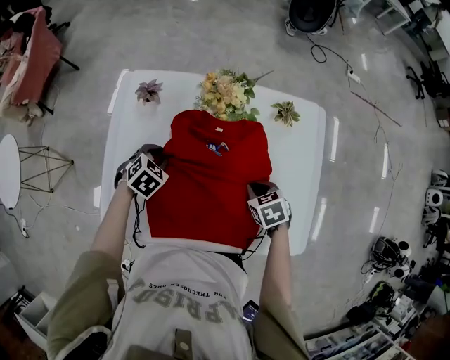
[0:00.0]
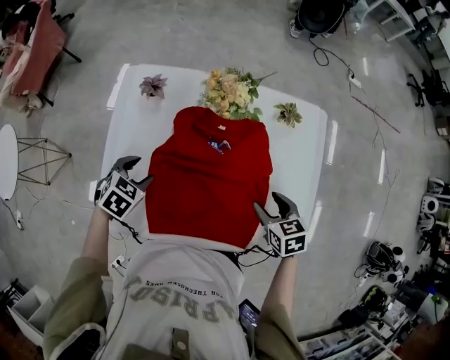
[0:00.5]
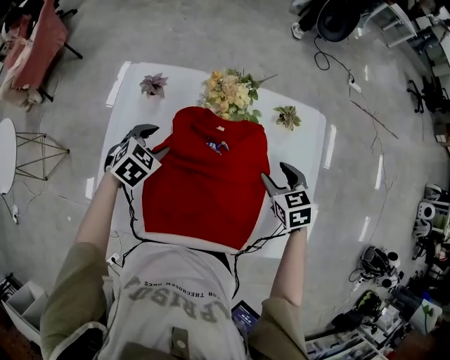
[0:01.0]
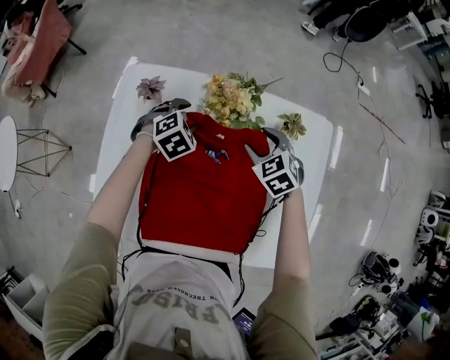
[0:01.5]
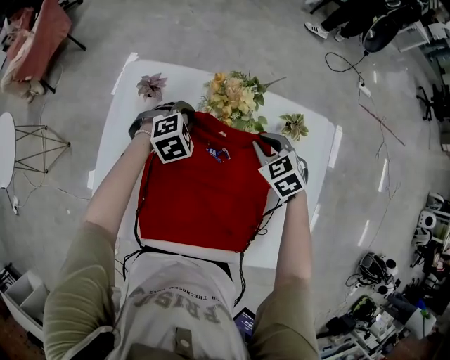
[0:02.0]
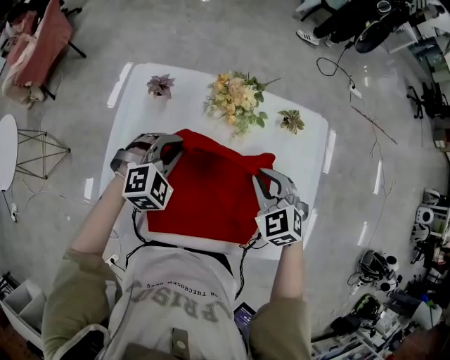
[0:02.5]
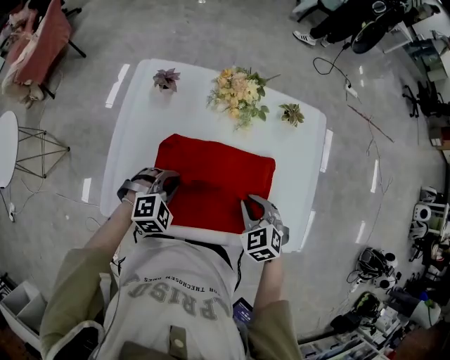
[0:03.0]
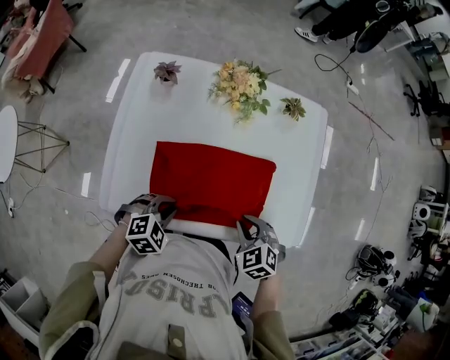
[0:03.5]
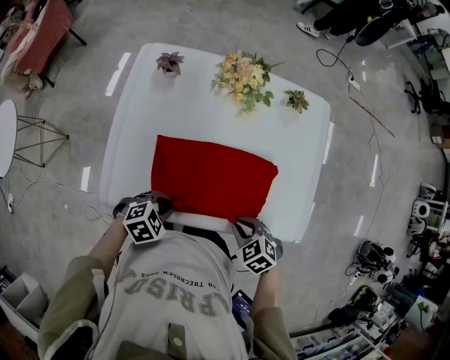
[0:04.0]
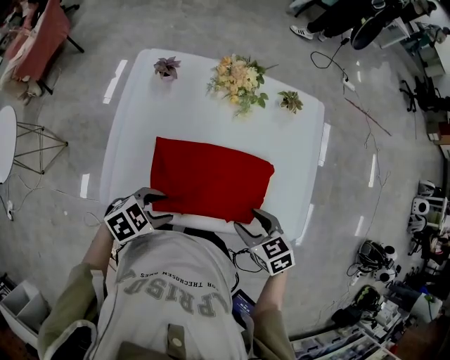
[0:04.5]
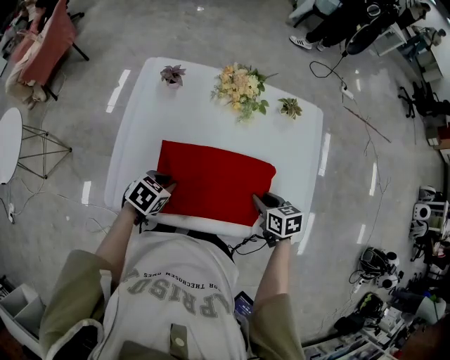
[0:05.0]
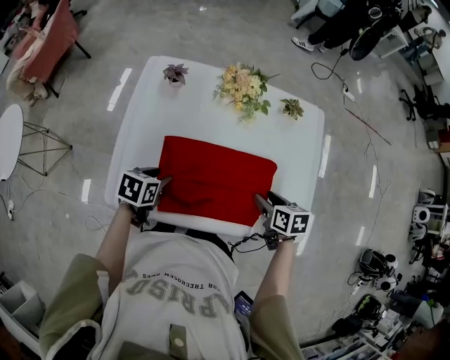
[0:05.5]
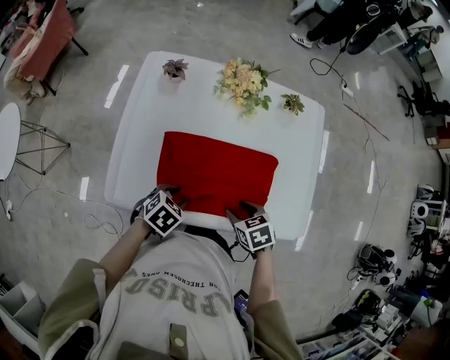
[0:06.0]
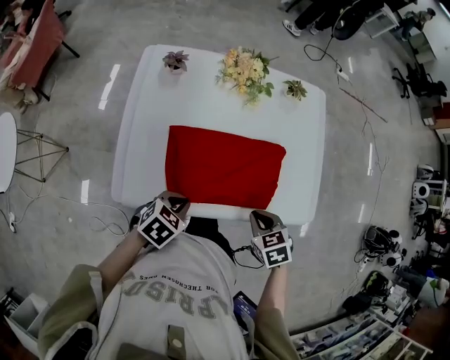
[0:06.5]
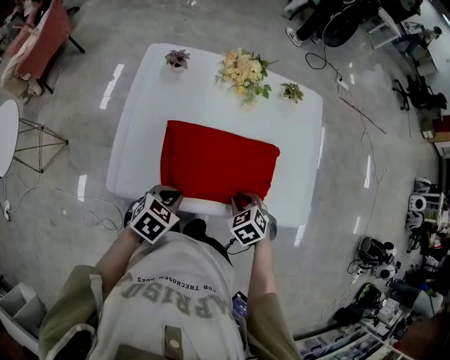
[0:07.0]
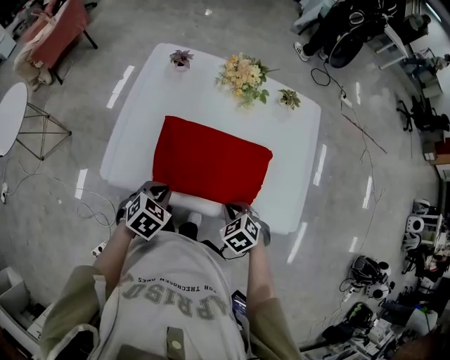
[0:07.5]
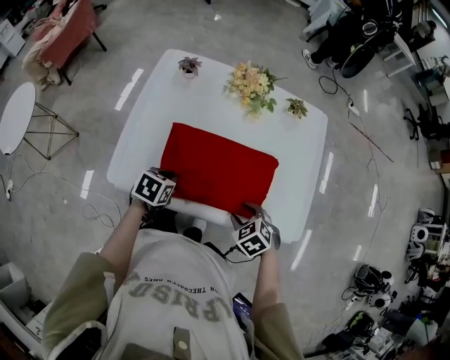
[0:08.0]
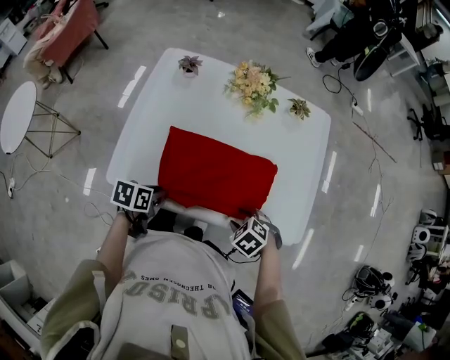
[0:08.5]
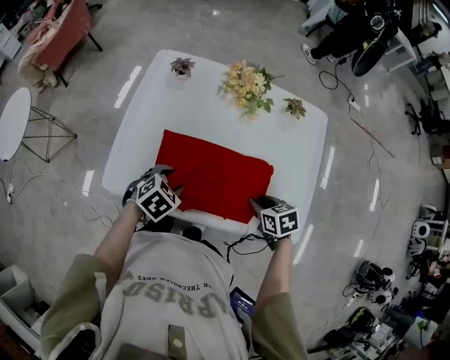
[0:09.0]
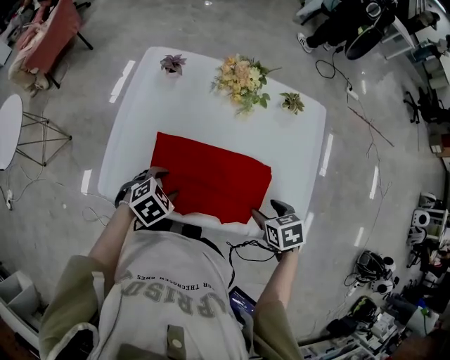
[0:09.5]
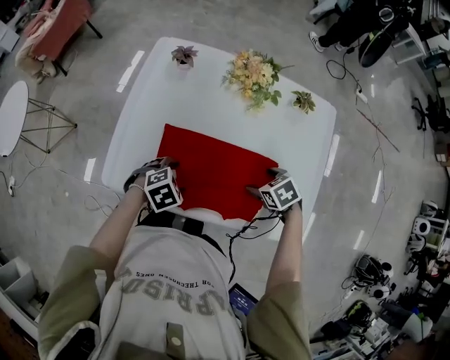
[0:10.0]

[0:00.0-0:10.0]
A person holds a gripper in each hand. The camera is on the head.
0:00.0 to 0:02.0: The left gripper travels forward and to the right by approximately 15 cm, rotates approximately 20 degrees, and opens and closes again, while the right gripper goes about 20 cm forward, rotates about 30 degrees, and opens, then closes again.
0:02.0 to 0:04.0: The right gripper reaches roughly 10 cm upward, then returns. The left gripper travels upward and back again, about 10 cm each way, and swivels some 30 degrees.
0:04.0 to 0:06.0: The right gripper turns by about 20 degrees, and opens. The left gripper turns by some 20 degrees, and opens its fingers.
0:06.0 to 0:08.0: The right gripper changes its angle by about 30 degrees, and closes and opens again. The left gripper changes its angle by approximately 30 degrees, and closes up.
0:08.0 to 0:10.0: The right gripper moves some 15 cm, and opens; the left gripper twists some 40 degrees clockwise, seen from behind, and opens.

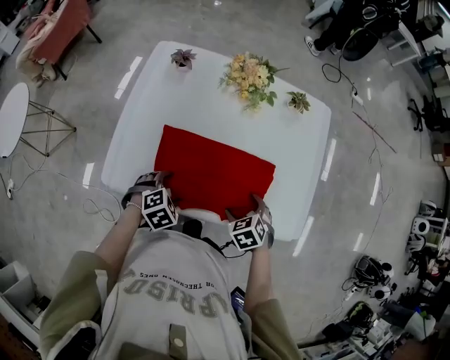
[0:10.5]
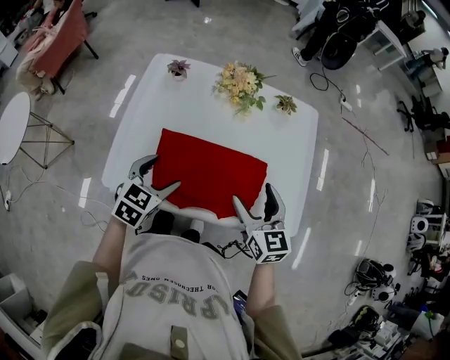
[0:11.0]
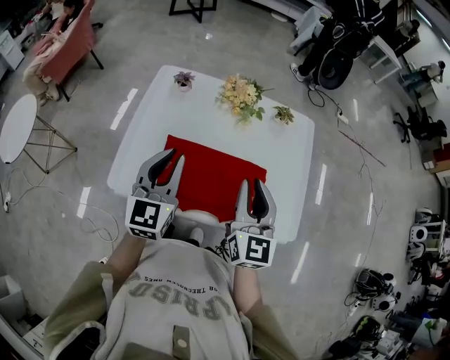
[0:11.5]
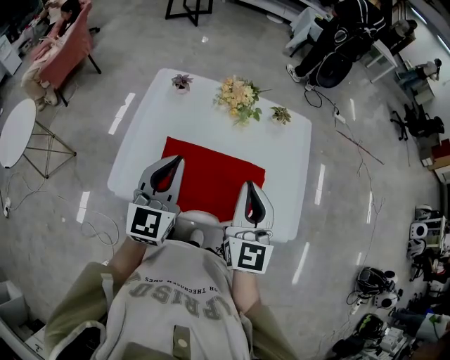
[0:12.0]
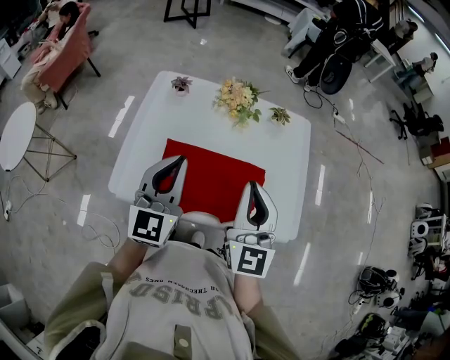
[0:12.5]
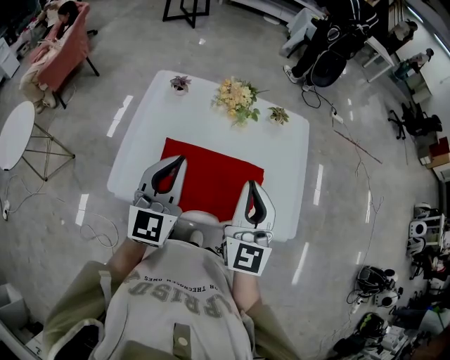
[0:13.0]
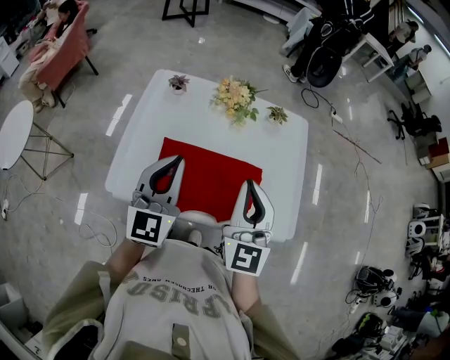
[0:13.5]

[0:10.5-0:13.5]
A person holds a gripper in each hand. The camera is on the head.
0:10.5 to 0:12.0: The two grippers go roughly 30 cm upward. The right gripper tips its fingers upward by some 70 degrees, and closes, while the left gripper tilts its fingers about 70 degrees upward, and closes.
0:12.0 to 0:13.5: The grippers move only a little.

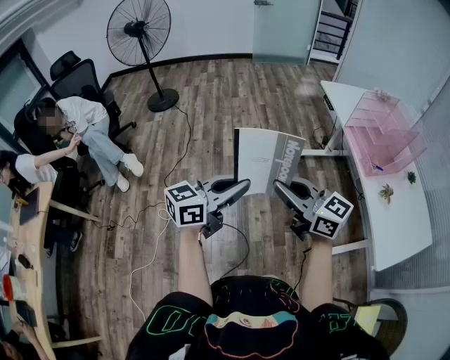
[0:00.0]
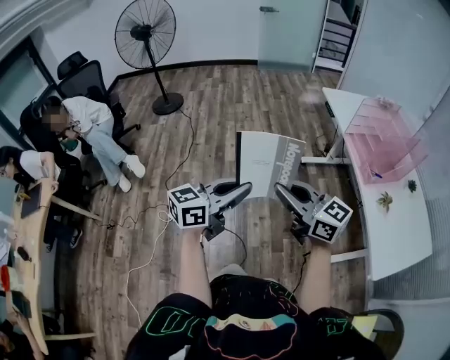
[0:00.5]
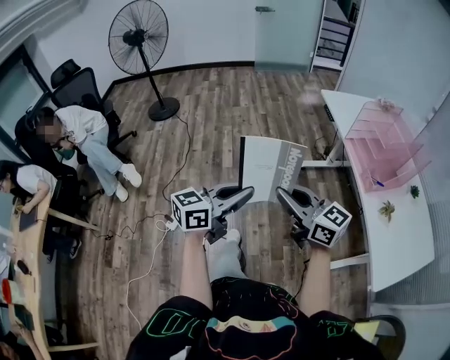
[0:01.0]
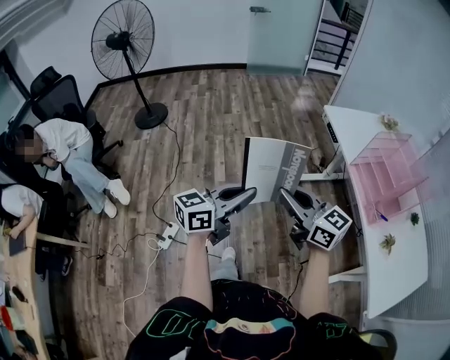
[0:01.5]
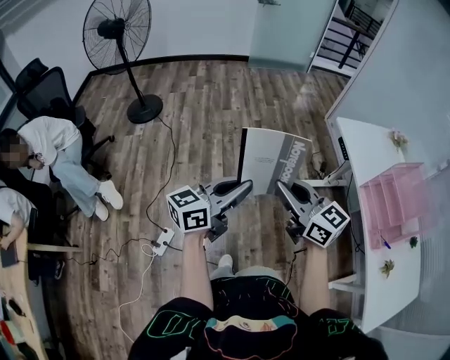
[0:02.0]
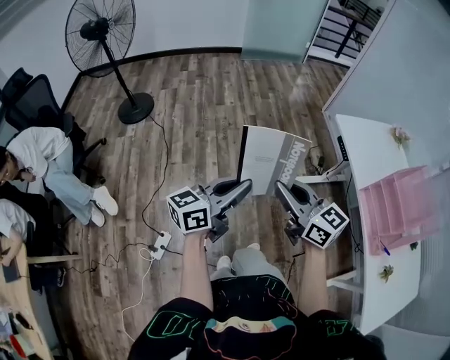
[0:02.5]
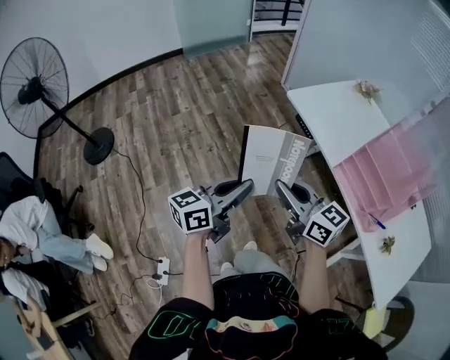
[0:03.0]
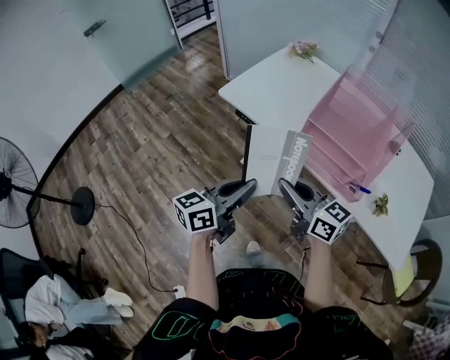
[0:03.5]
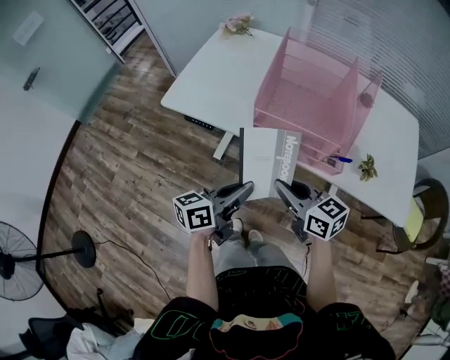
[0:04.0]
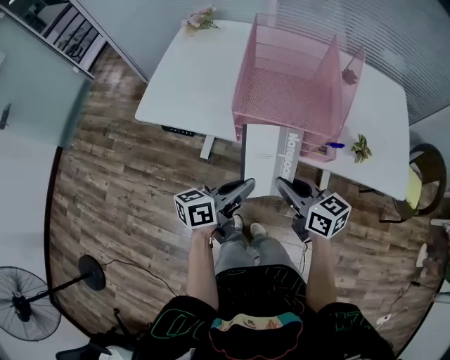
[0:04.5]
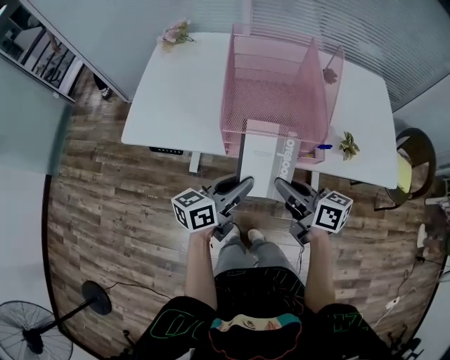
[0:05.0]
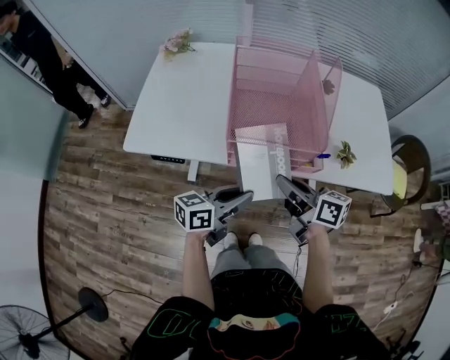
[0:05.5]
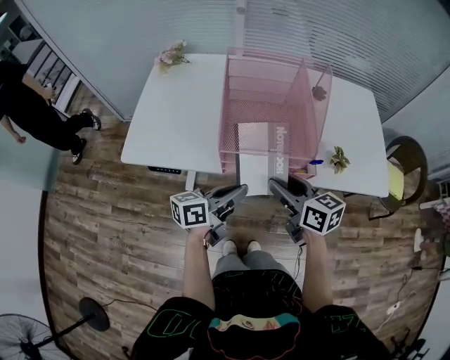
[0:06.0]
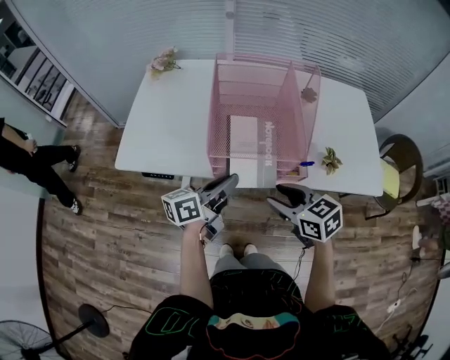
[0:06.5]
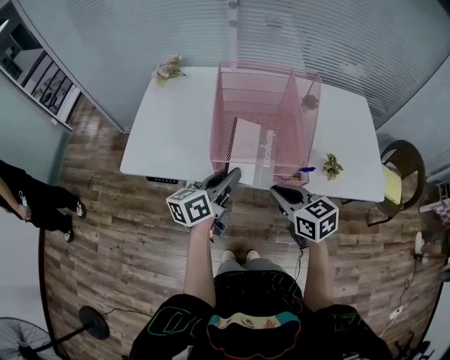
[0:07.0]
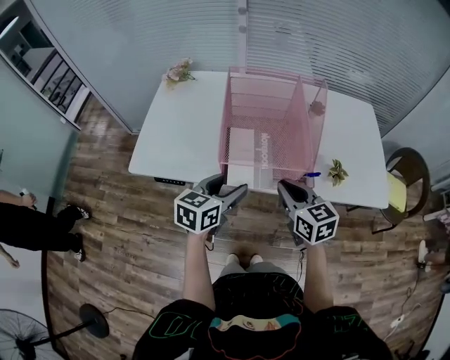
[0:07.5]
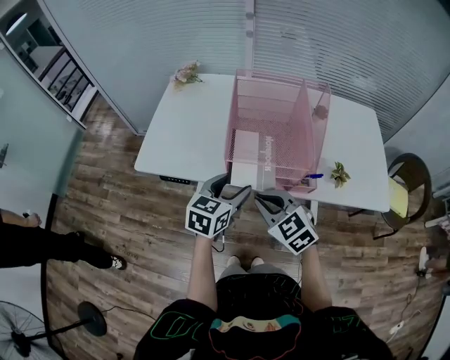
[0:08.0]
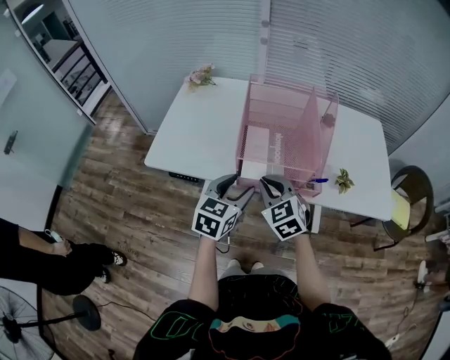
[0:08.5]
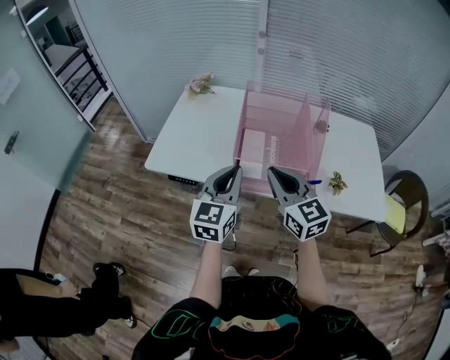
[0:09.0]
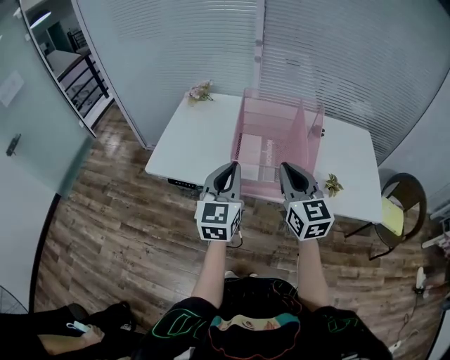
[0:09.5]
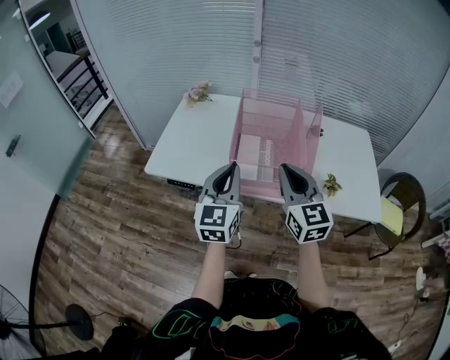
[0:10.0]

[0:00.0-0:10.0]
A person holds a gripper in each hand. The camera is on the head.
0:00.0 to 0:02.0: The two grippers go about 35 cm forward.
0:02.0 to 0:04.0: Both grippers are carried about 40 cm. The left gripper turns by roughly 60 degrees. The right gripper turns by roughly 60 degrees.
0:04.0 to 0:06.0: The two grippers go approximately 10 cm forward. The right gripper swivels roughly 30 degrees, and opens, while the left gripper turns by about 20 degrees.
0:06.0 to 0:08.0: The right gripper heads to the left, covering some 5 cm, rolls counterclockwise, seen from behind, by roughly 40 degrees, and closes its fingers. Meanwhile the left gripper changes its angle by approximately 50 degrees, and opens its fingers.
0:08.0 to 0:10.0: The left gripper shifts about 15 cm upward, rotates approximately 40 degrees, and closes its fingers, while the right gripper goes about 15 cm upward and to the right, and rotates some 40 degrees.

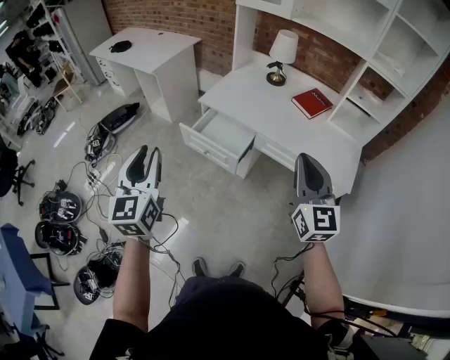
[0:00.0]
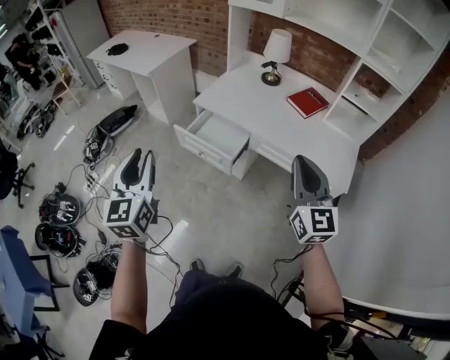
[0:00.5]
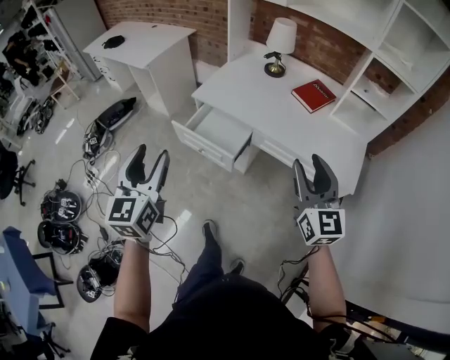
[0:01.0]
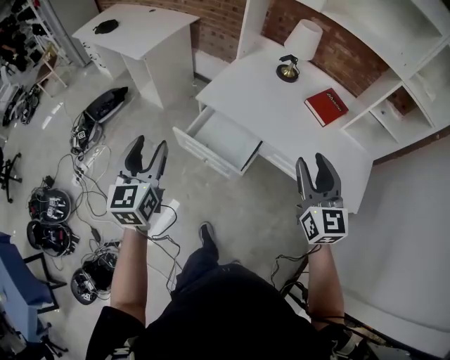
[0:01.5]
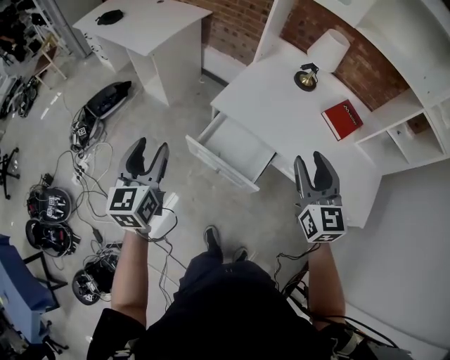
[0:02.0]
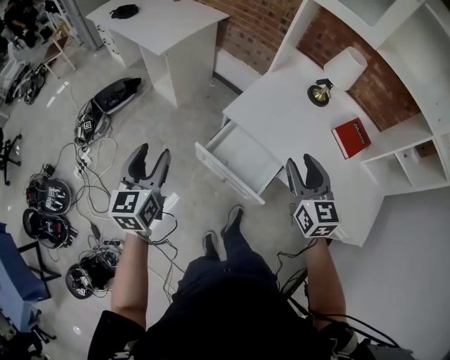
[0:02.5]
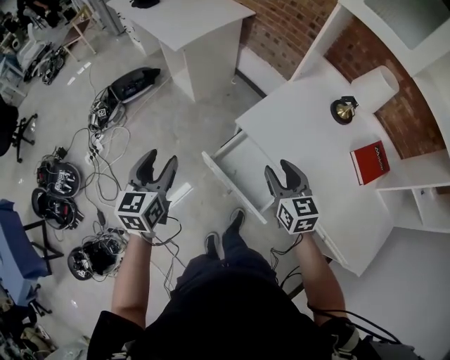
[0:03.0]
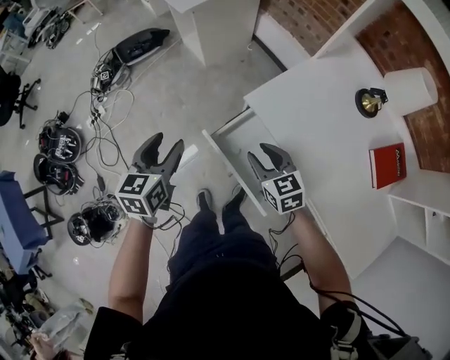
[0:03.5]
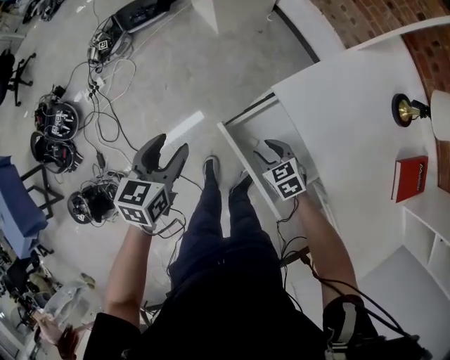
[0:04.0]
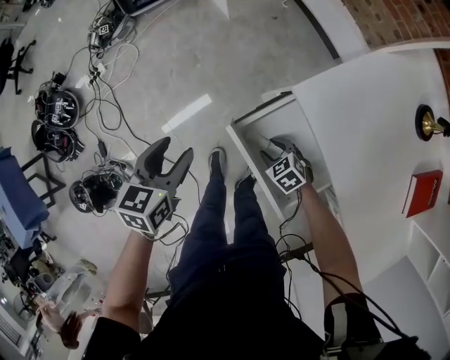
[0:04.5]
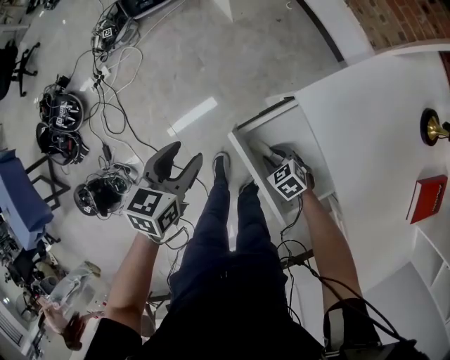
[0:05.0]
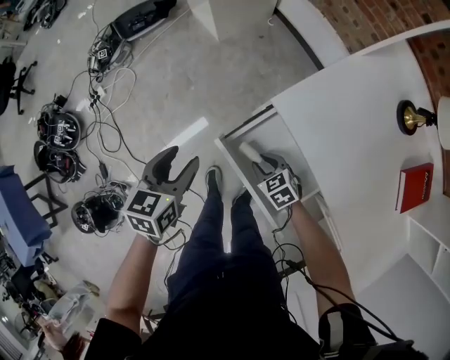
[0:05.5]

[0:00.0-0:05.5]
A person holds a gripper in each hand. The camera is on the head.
0:00.0 to 0:02.0: The grippers both shift forward by some 30 cm. The left gripper opens, while the right gripper opens its fingers.
0:02.0 to 0:03.5: The right gripper shifts roughly 25 cm downward, and swivels about 50 degrees; the left gripper shifts approximately 15 cm downward, and swivels roughly 20 degrees.
0:03.5 to 0:05.5: The left gripper goes about 15 cm downward. The right gripper heads downward, covering some 25 cm, and rotates about 30 degrees.
